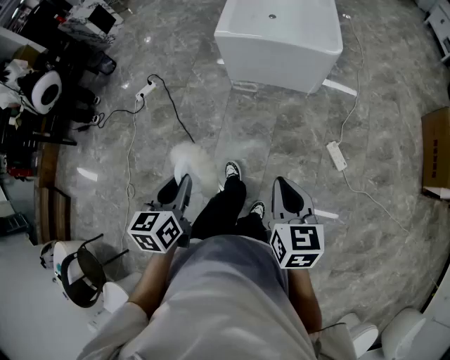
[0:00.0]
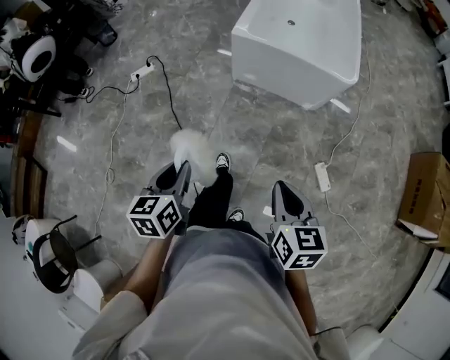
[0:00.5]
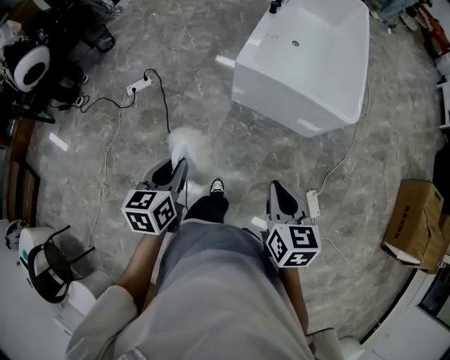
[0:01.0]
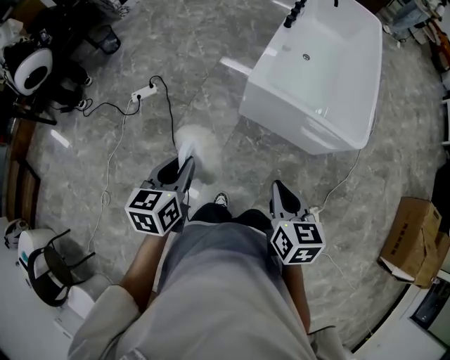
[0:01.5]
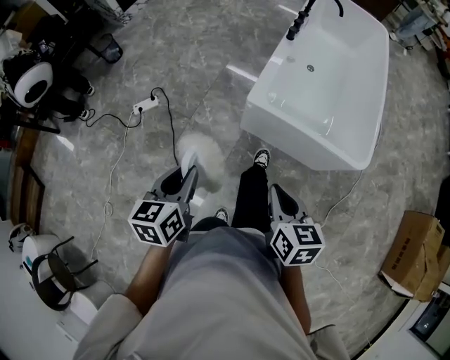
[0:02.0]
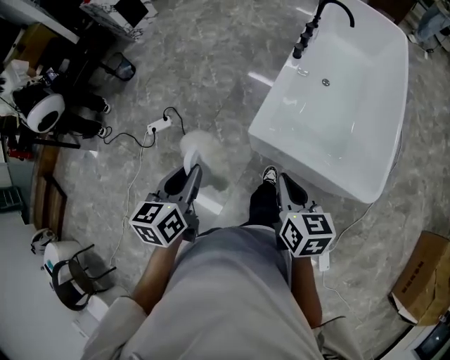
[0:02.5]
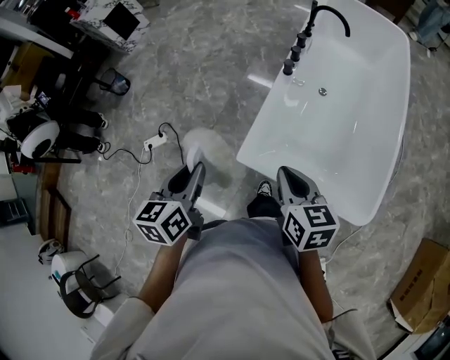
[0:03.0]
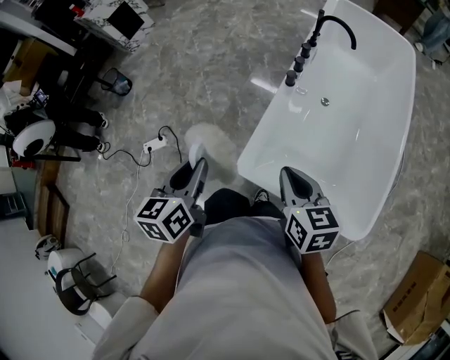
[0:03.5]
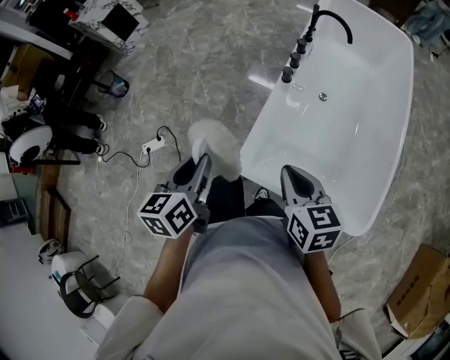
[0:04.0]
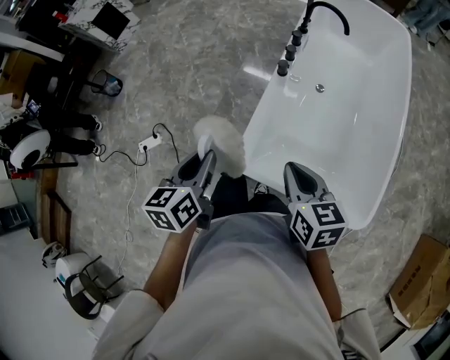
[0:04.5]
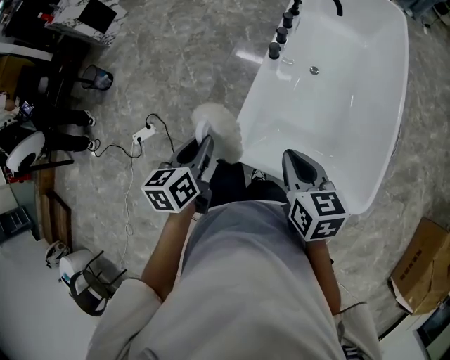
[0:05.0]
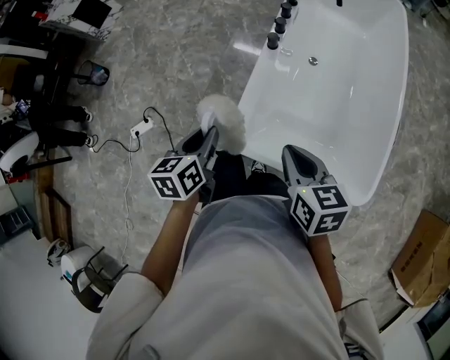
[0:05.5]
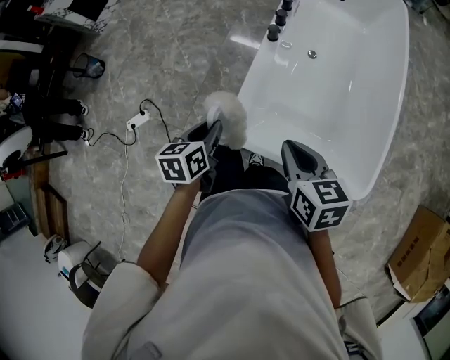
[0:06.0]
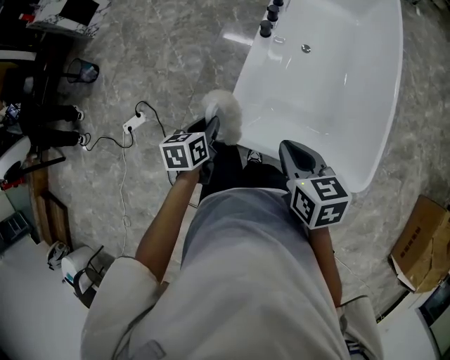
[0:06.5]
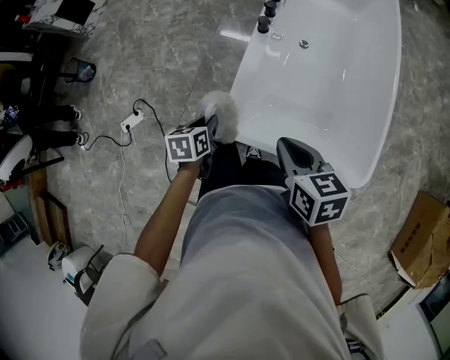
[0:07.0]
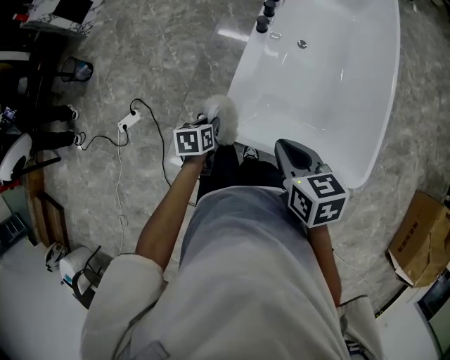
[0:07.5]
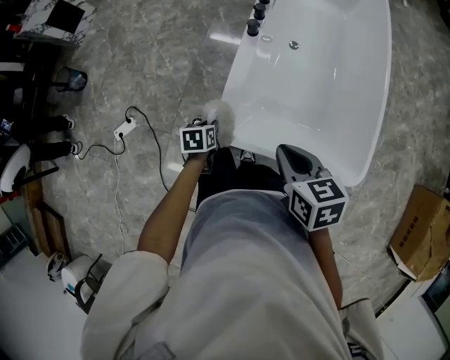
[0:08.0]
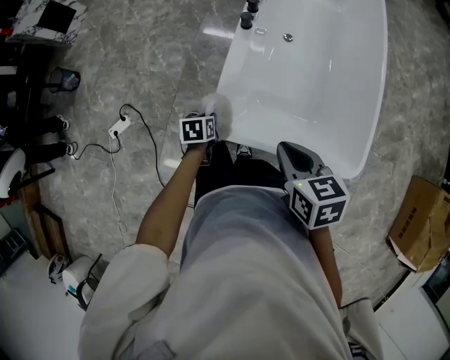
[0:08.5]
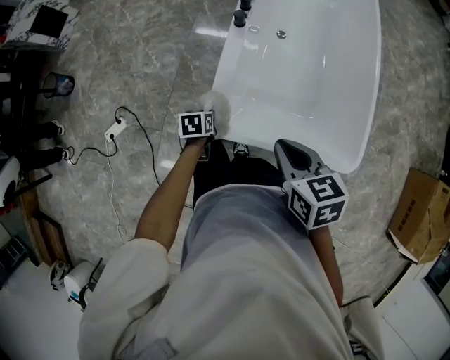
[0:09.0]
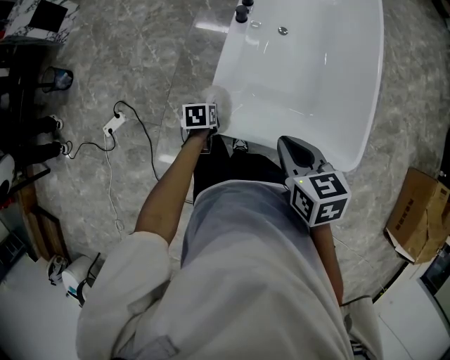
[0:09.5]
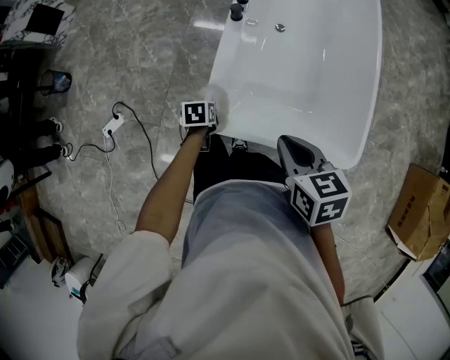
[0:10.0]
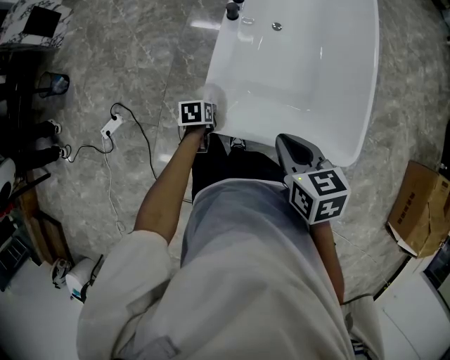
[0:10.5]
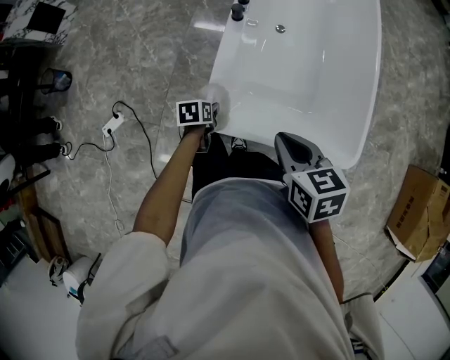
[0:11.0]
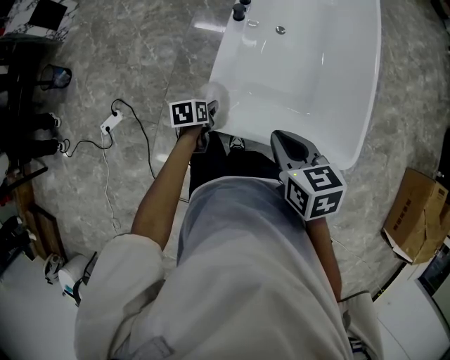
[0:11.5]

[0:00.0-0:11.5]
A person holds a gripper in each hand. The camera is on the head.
0:00.0 to 0:02.0: The pair of grippers is taken forward, about 50 cm.
0:02.0 to 0:04.0: The pair of grippers is taken forward and to the right, approximately 40 cm.
0:04.0 to 0:06.0: The left gripper travels downward by about 15 cm.
0:06.0 to 0:07.5: The left gripper is displaced downward by about 15 cm.
0:07.5 to 0:09.5: The left gripper is displaced downward by some 5 cm.
0:09.5 to 0:11.5: The left gripper opens.

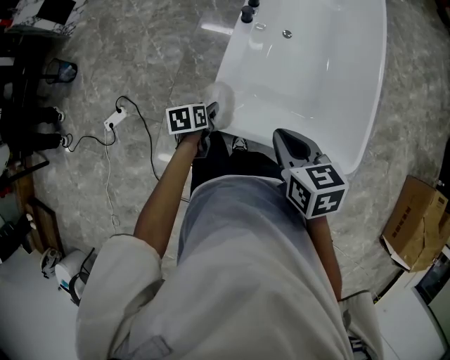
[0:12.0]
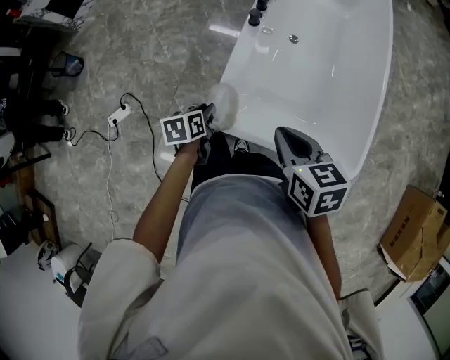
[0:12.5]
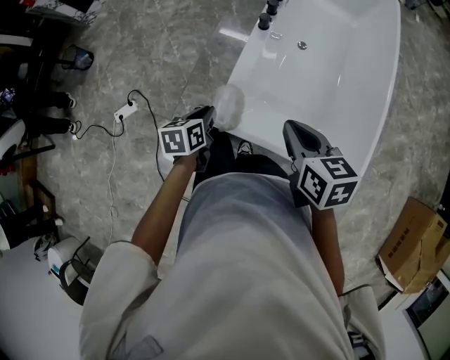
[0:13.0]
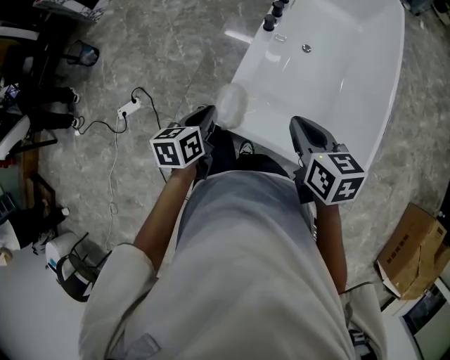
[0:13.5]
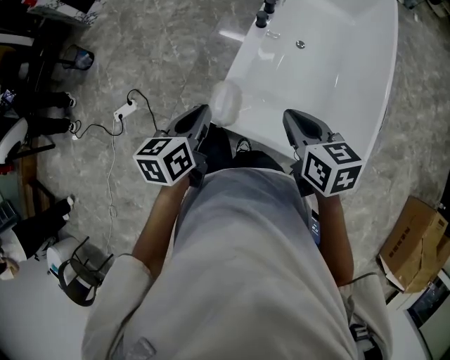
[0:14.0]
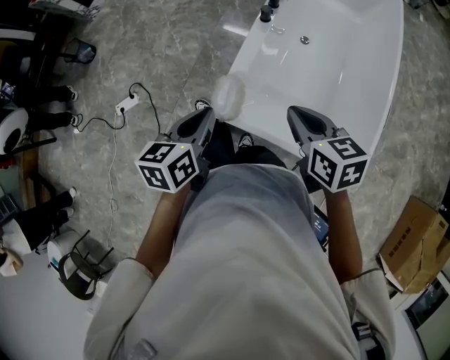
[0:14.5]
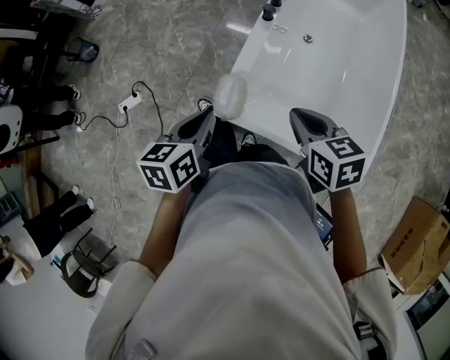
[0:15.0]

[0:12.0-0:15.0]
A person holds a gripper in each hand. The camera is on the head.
0:12.0 to 0:13.5: The left gripper travels upward by some 15 cm, rotates roughly 20 degrees, and closes its fingers.
0:13.5 to 0:15.0: The left gripper is displaced upward by approximately 5 cm.

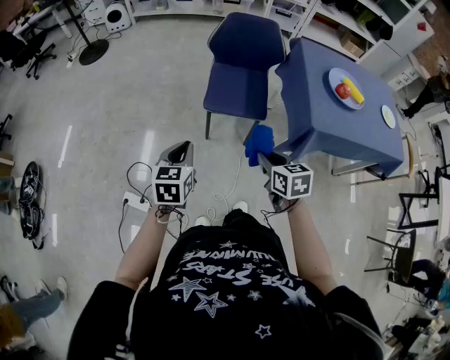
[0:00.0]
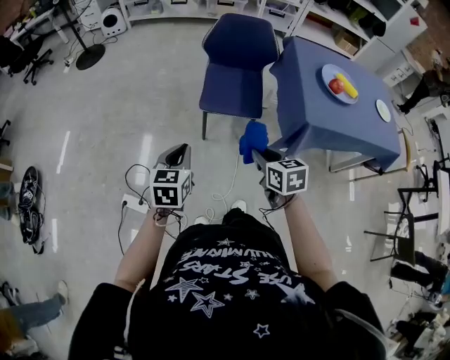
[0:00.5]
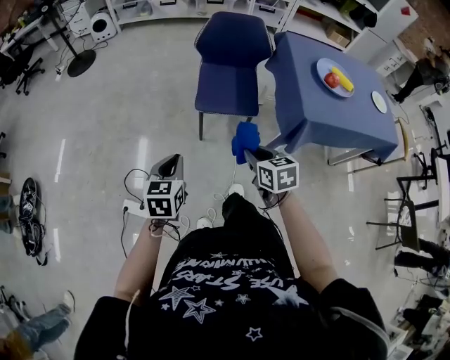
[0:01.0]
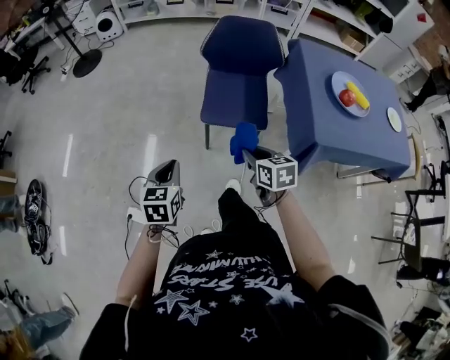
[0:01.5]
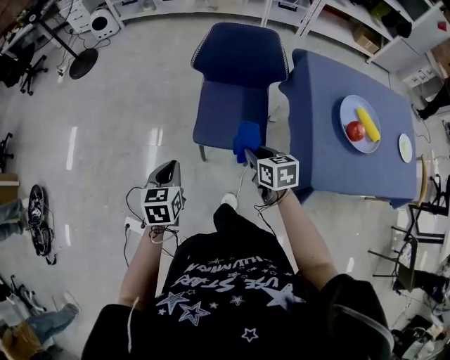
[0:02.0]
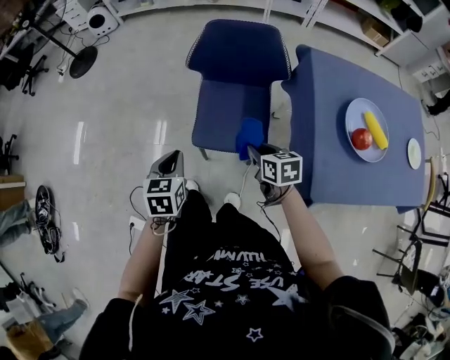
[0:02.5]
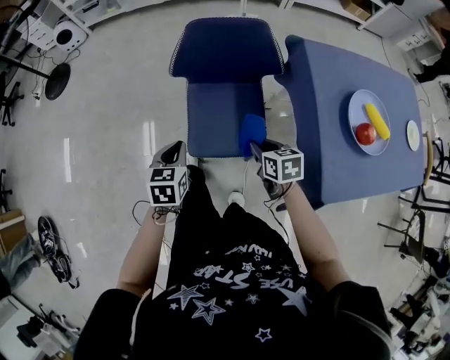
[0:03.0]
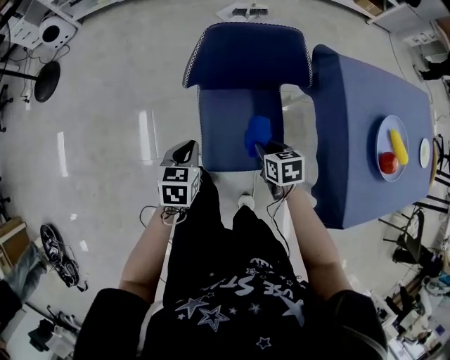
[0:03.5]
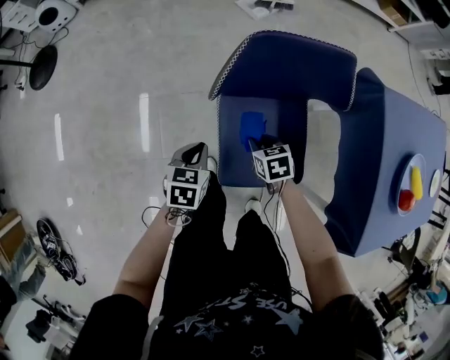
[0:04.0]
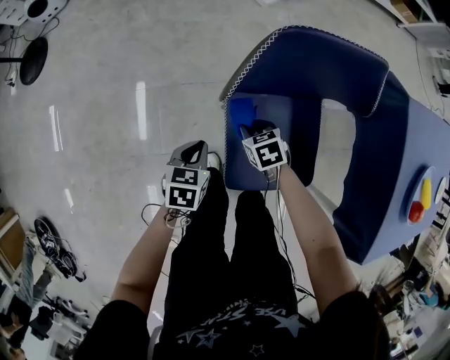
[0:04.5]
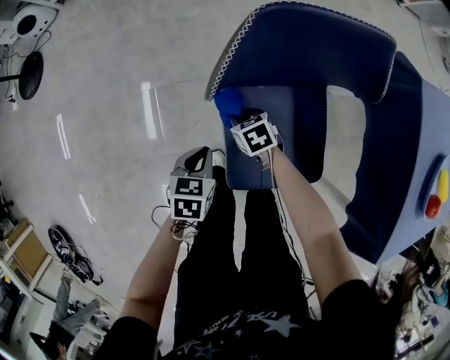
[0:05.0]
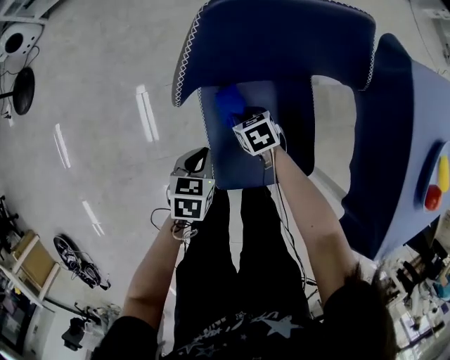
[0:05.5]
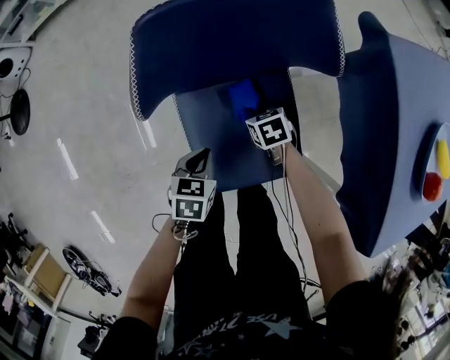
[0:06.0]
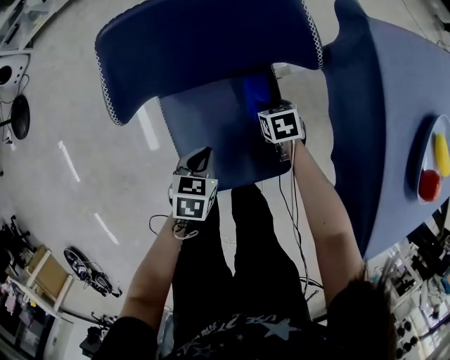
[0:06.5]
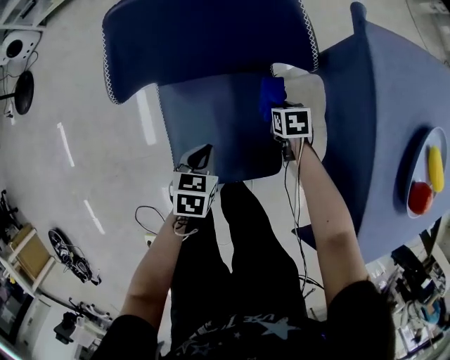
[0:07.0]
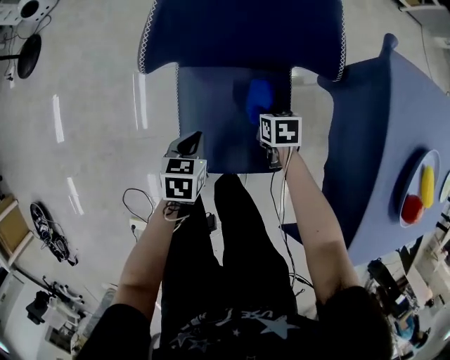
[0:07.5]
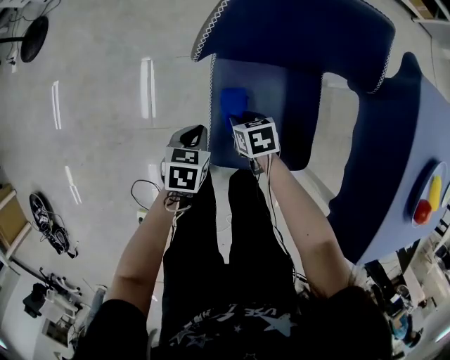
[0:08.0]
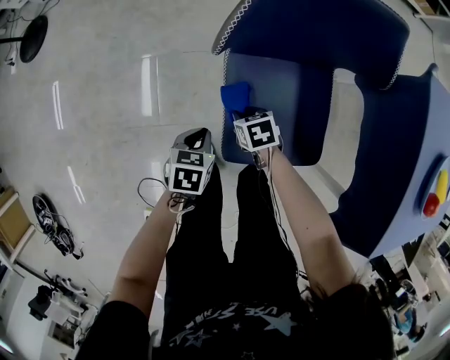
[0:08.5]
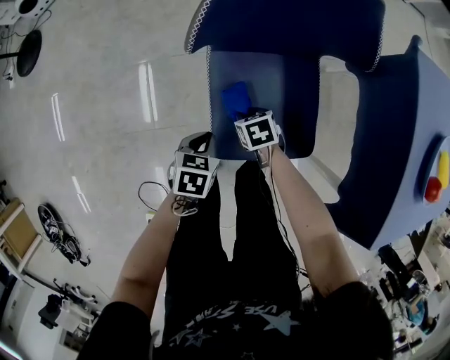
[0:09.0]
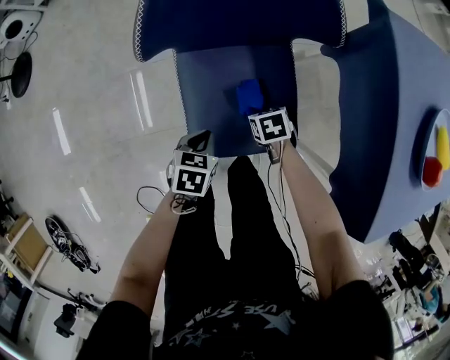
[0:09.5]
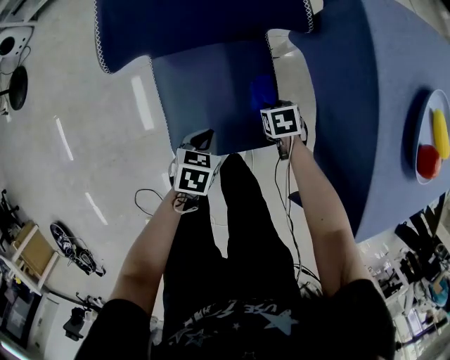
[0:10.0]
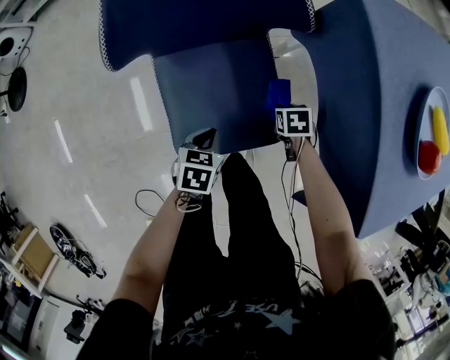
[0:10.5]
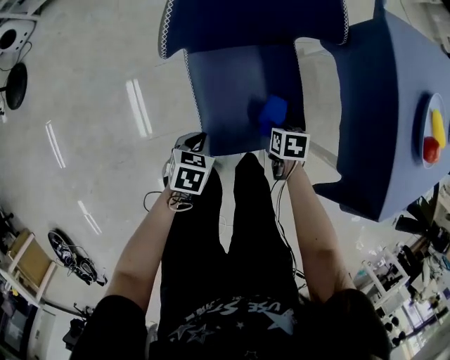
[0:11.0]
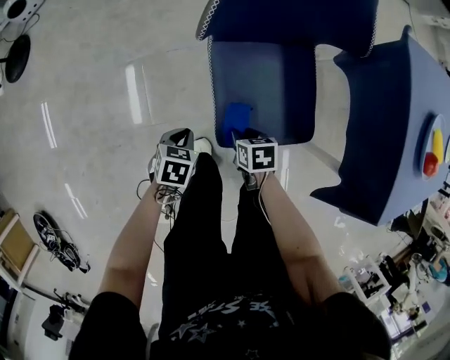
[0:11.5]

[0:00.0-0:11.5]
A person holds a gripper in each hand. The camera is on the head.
0:00.0 to 0:02.0: Both grippers travel together forward, approximately 25 cm.
0:02.0 to 0:04.0: Both grippers move forward and downward, some 40 cm. The left gripper rotates roughly 30 degrees; the right gripper rotates some 20 degrees.
0:04.0 to 0:06.0: The left gripper goes about 15 cm to the right and downward. Meanwhile the right gripper travels downward, to the right and forward by some 20 cm.
0:06.0 to 0:07.5: The left gripper travels to the right and back again, some 10 cm each way, while the right gripper moves roughly 15 cm to the right and comes back.
0:07.5 to 0:09.5: Both grippers move backward, approximately 5 cm. The left gripper reaches some 15 cm to the left, then returns, while the right gripper moves about 25 cm to the left and comes back.
0:09.5 to 0:11.5: The right gripper moves approximately 20 cm. Meanwhile the left gripper changes place by approximately 15 cm.

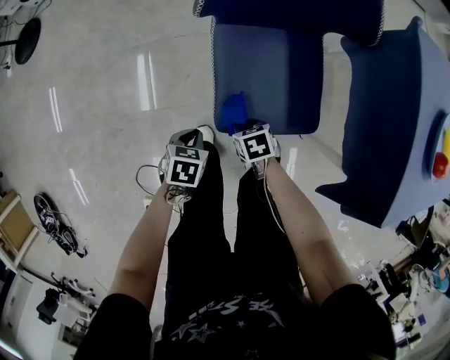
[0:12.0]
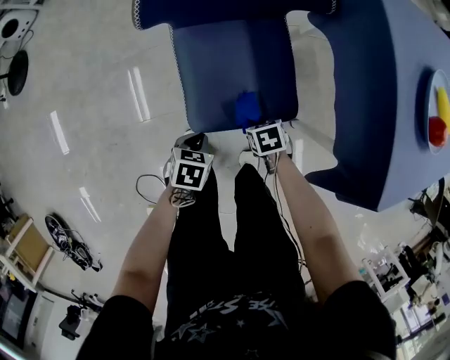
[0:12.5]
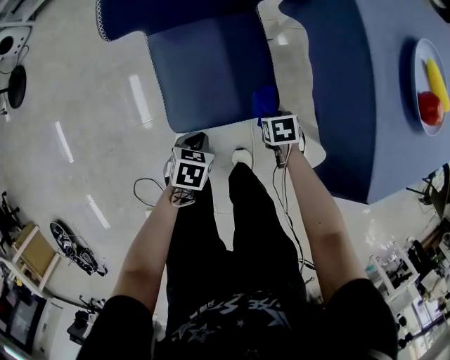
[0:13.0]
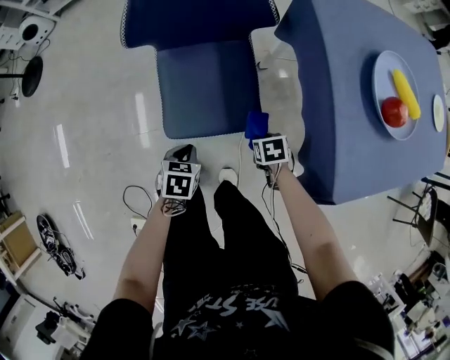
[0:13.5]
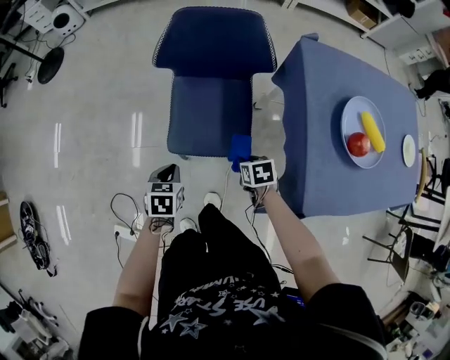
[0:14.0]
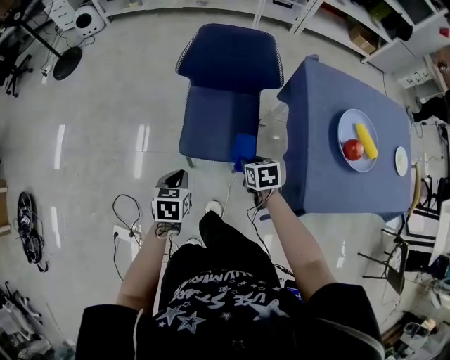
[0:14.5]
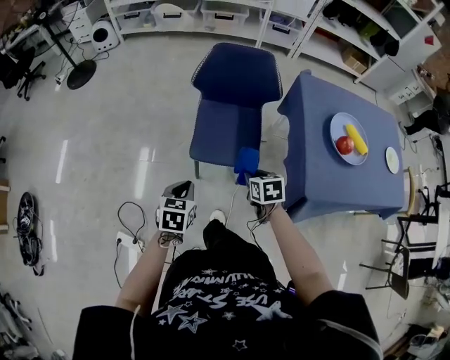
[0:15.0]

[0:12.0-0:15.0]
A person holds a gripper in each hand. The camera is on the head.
0:12.0 to 0:13.5: The right gripper ends up about 30 cm from where it was, while the left gripper moves approximately 20 cm.
0:13.5 to 0:15.0: The grippers both shift upward by some 25 cm. The right gripper swivels about 30 degrees. Meanwhile the left gripper turns by some 30 degrees.
